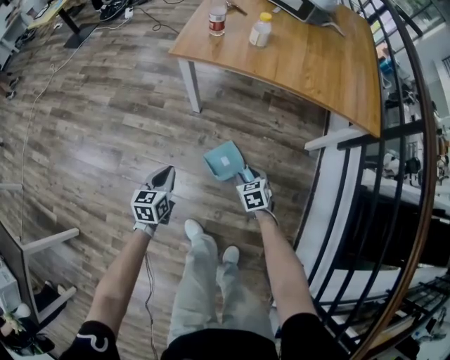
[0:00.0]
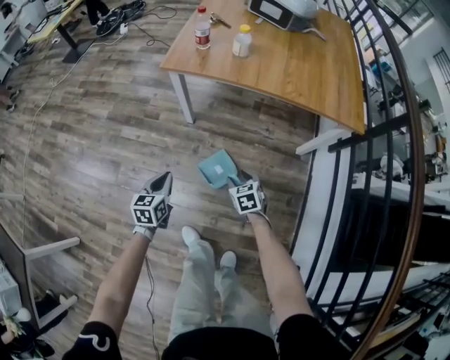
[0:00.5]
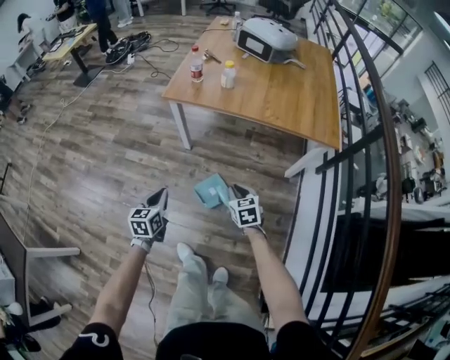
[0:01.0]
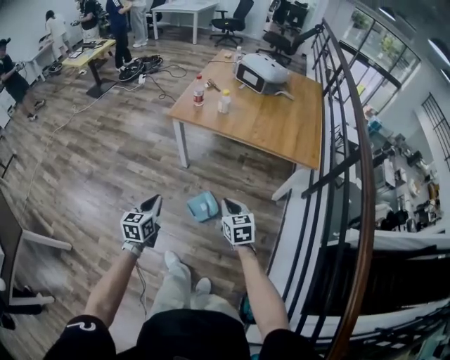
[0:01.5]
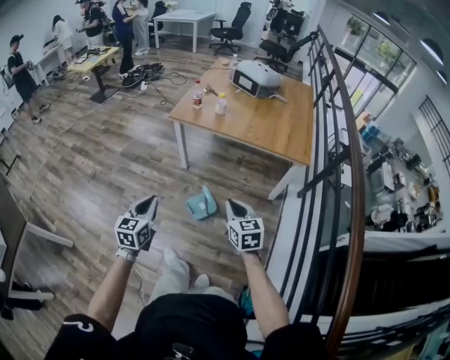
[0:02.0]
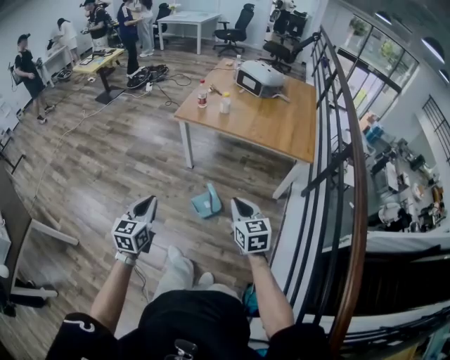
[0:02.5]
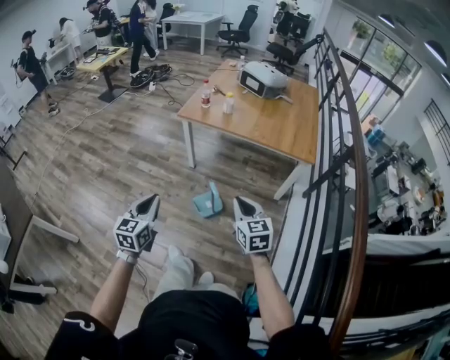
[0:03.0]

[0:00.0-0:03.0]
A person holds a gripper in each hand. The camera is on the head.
0:00.0 to 0:01.5: Both grippers move upward and backward, roughly 35 cm. The right gripper changes its angle by approximately 20 degrees, and closes its fingers.
0:01.5 to 0:03.0: The two grippers go roughly 20 cm backward and upward.

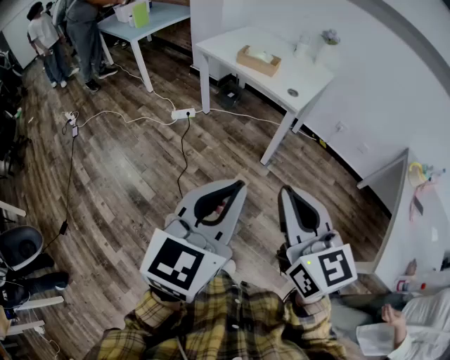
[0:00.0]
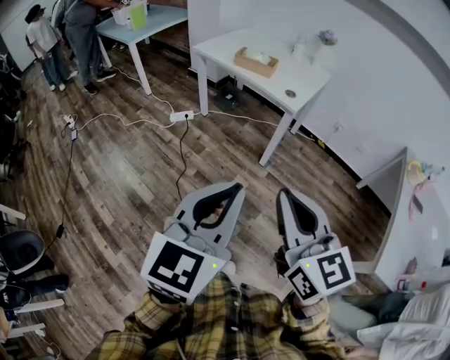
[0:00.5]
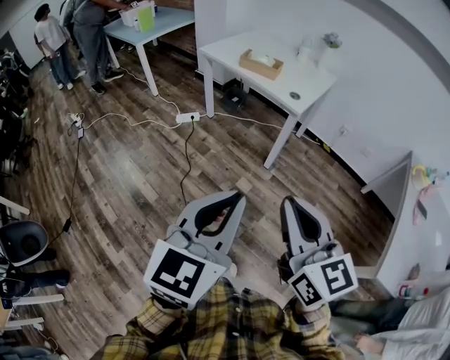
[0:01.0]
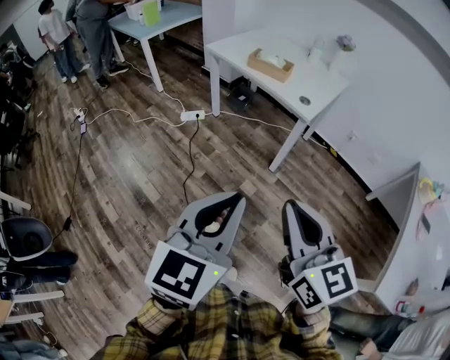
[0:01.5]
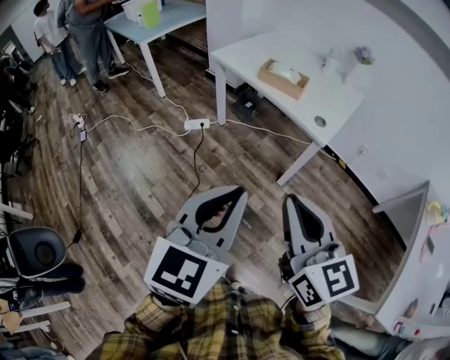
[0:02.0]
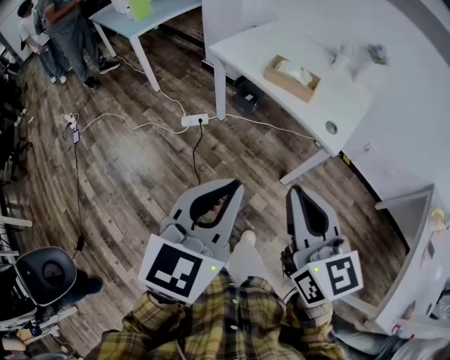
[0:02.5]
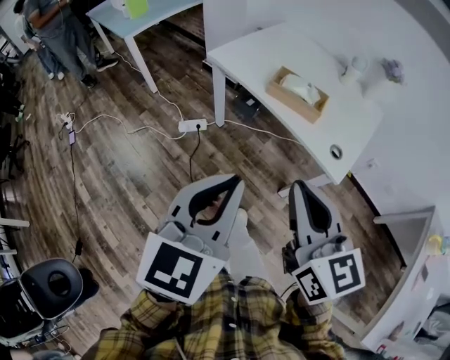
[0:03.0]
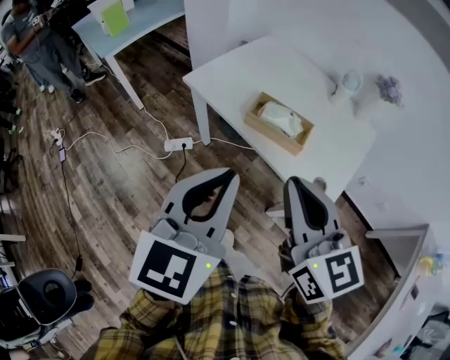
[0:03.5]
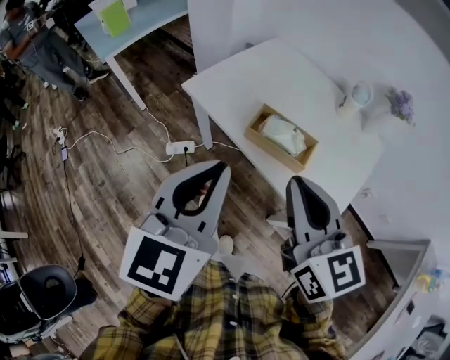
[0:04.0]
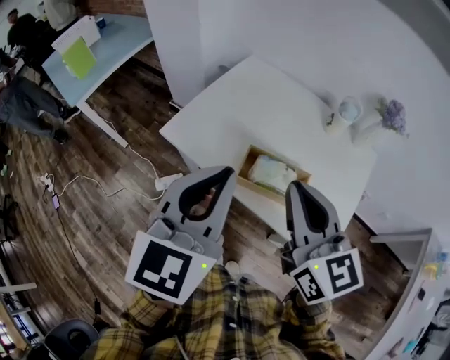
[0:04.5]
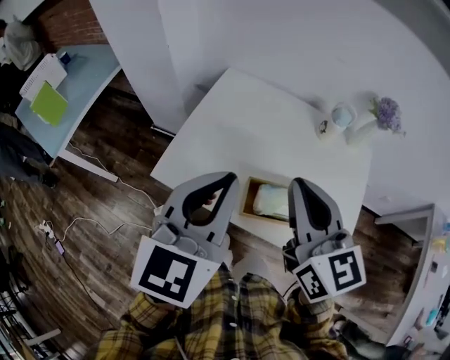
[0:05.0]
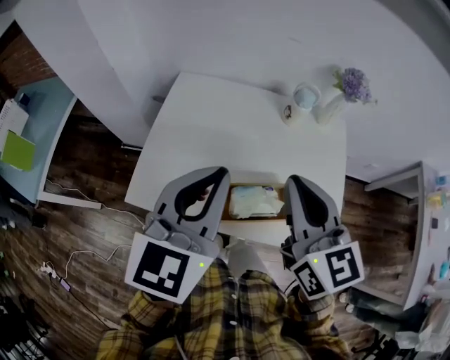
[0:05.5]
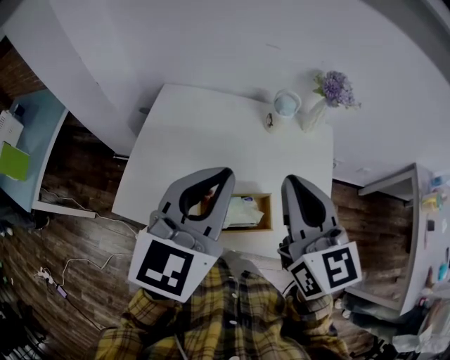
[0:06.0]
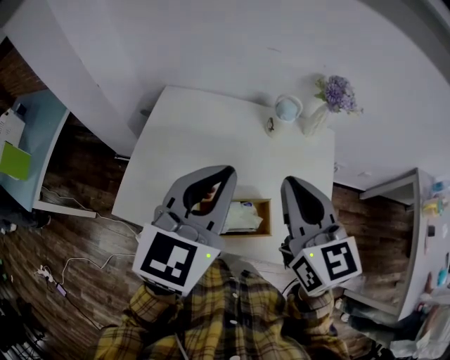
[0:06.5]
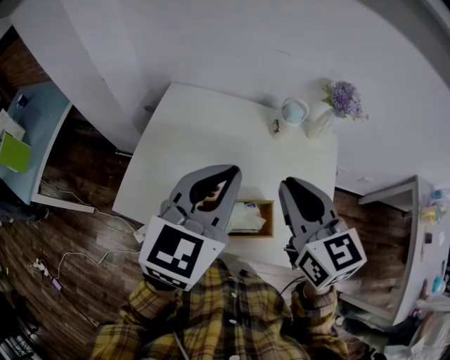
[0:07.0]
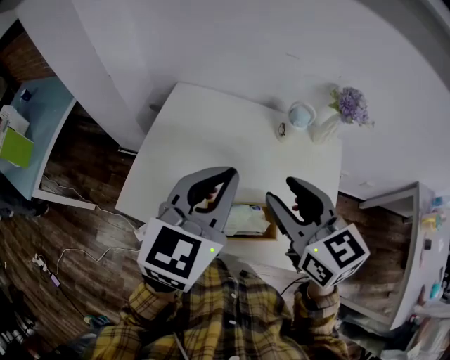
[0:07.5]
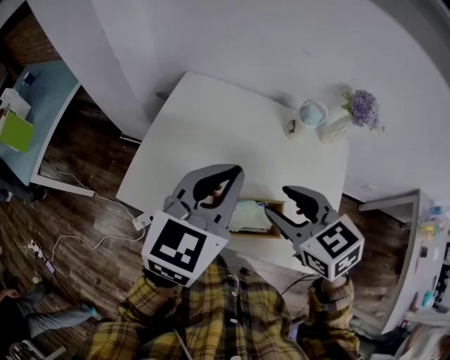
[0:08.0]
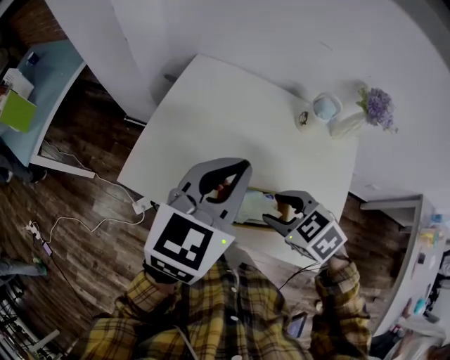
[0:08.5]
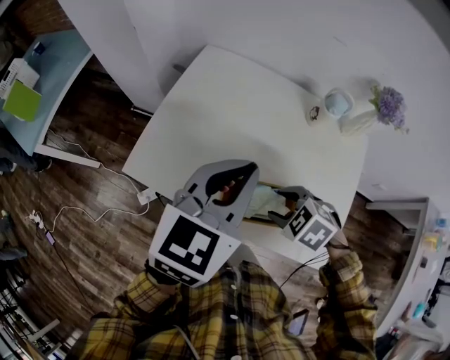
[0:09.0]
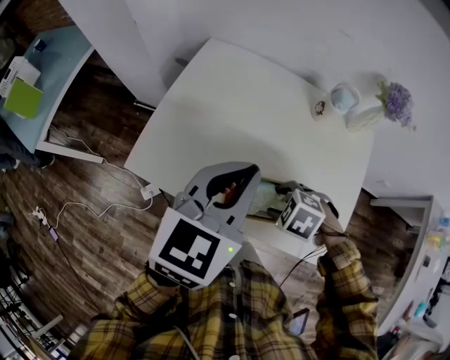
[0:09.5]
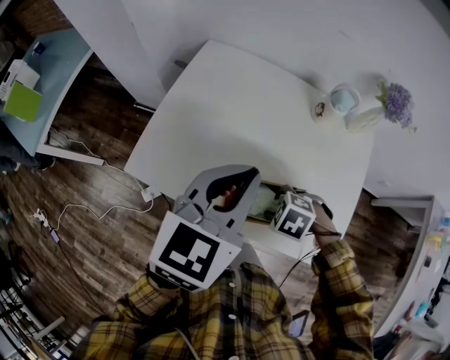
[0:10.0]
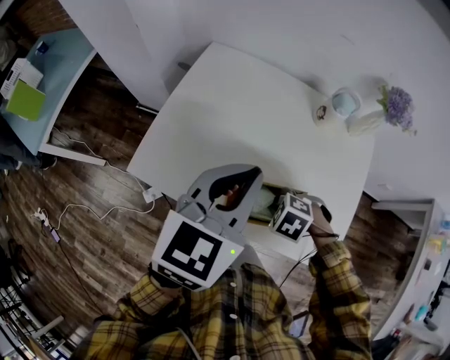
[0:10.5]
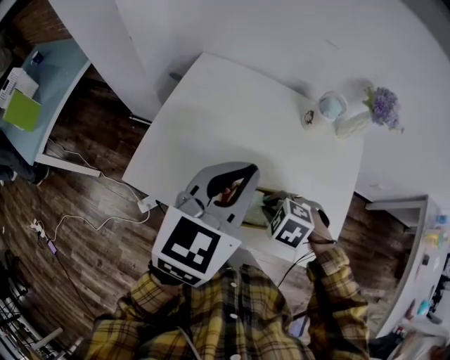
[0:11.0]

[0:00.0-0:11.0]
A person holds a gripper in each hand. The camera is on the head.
0:00.0 to 0:02.0: The grippers both shift forward by roughly 15 cm.
0:02.0 to 0:03.5: The grippers both shift forward by approximately 35 cm.
0:03.5 to 0:05.5: The left gripper shifts by some 30 cm, and turns by some 30 degrees. The right gripper shifts by about 25 cm, and changes its angle by some 30 degrees.
0:05.5 to 0:07.5: The right gripper moves some 5 cm, changes its angle by about 20 degrees, and opens up; the left gripper heads forward, covering about 5 cm.
0:07.5 to 0:09.0: The left gripper shifts by about 5 cm. The right gripper is displaced downward by roughly 20 cm, and points its fingers approximately 50 degrees further downward.
0:09.0 to 0:11.0: The right gripper closes.

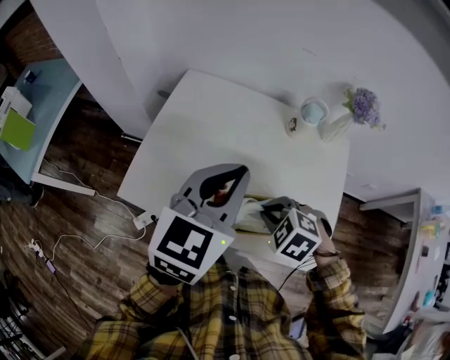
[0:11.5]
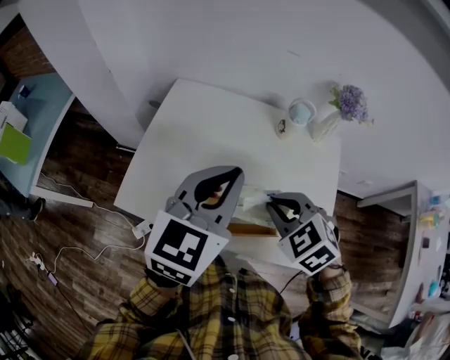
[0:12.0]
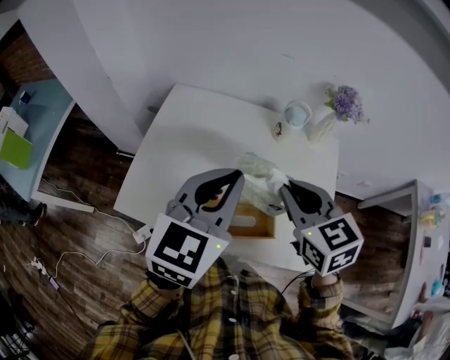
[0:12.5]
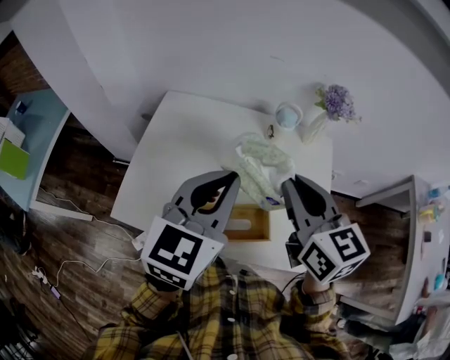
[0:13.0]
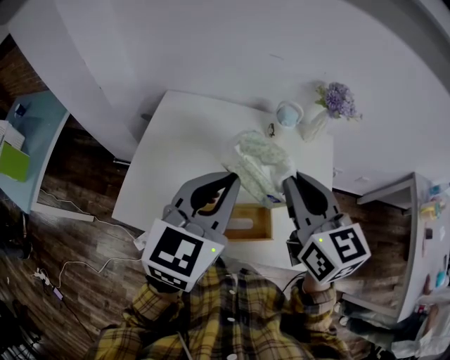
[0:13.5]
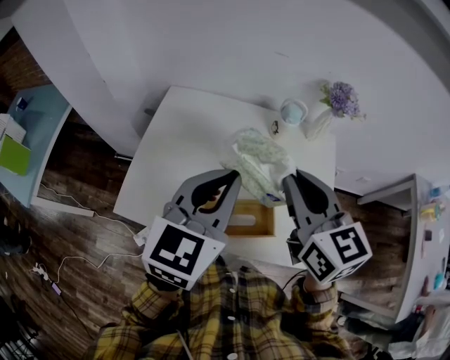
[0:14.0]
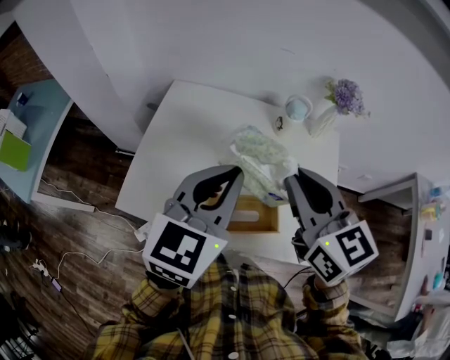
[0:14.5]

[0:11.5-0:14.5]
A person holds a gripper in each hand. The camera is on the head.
0:11.5 to 0:13.0: The right gripper heads upward, covering some 20 cm, and points its fingers some 50 degrees further upward.
0:13.0 to 0:14.5: The grippers move only a little.

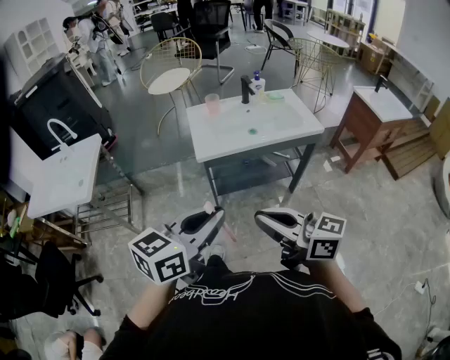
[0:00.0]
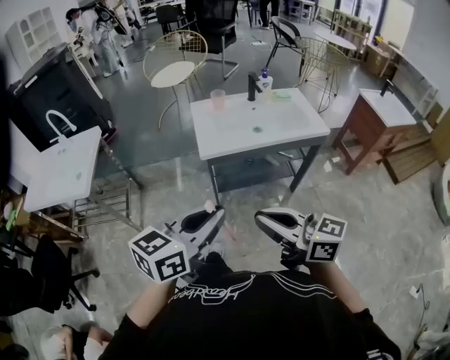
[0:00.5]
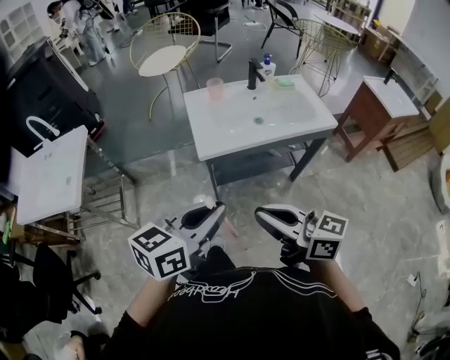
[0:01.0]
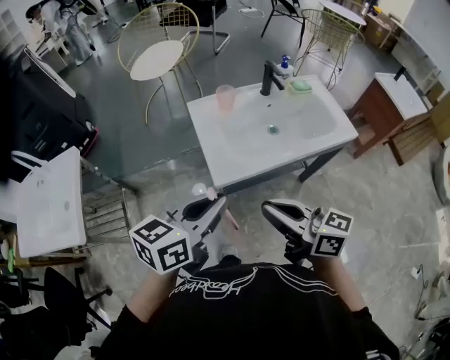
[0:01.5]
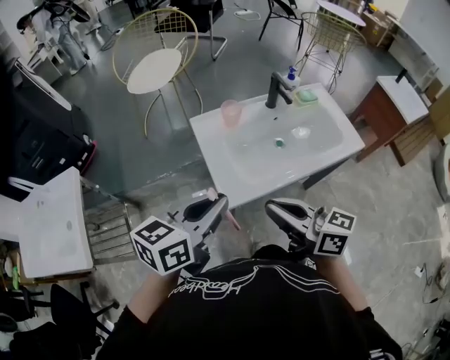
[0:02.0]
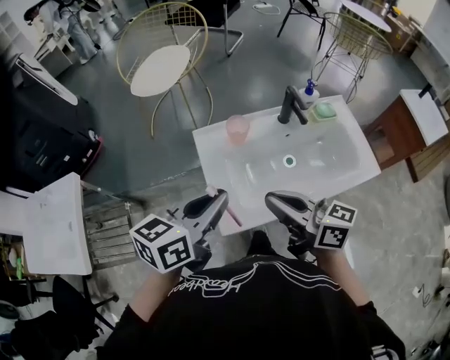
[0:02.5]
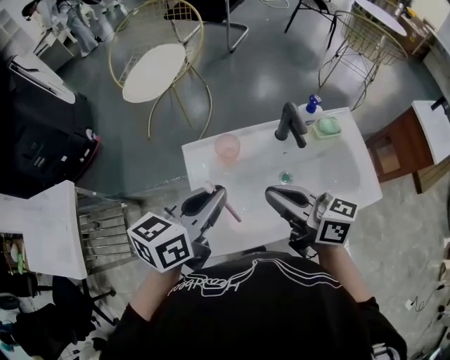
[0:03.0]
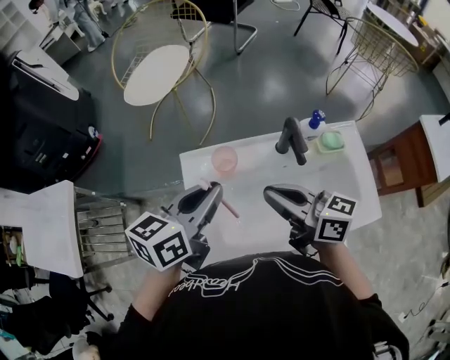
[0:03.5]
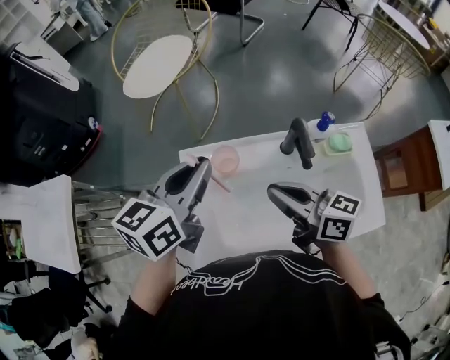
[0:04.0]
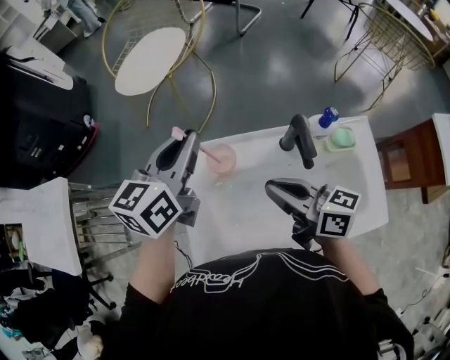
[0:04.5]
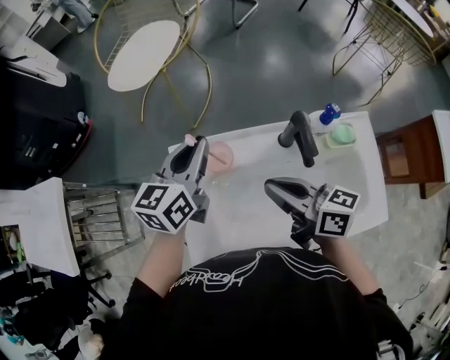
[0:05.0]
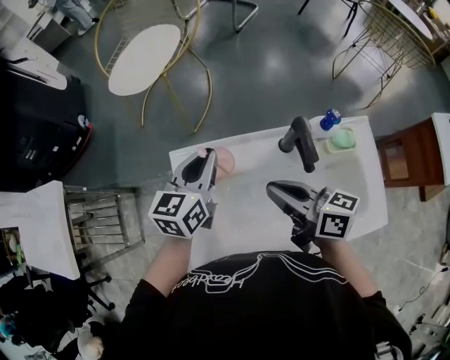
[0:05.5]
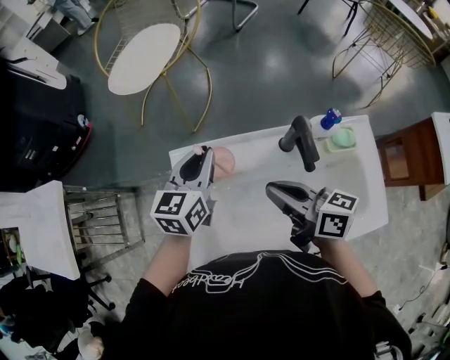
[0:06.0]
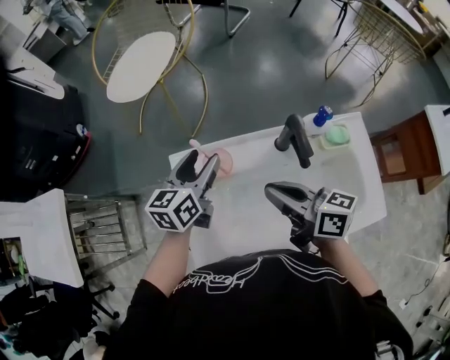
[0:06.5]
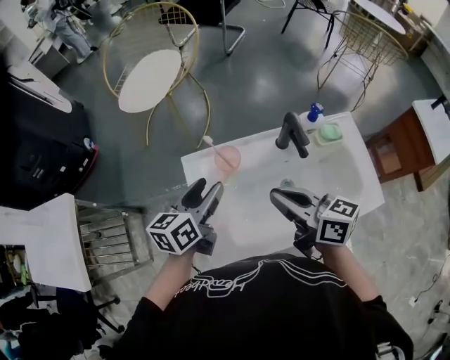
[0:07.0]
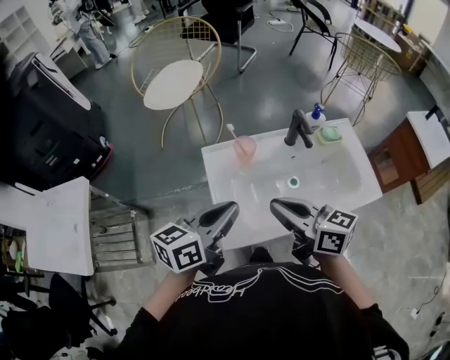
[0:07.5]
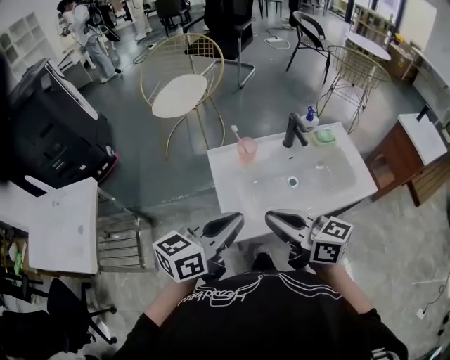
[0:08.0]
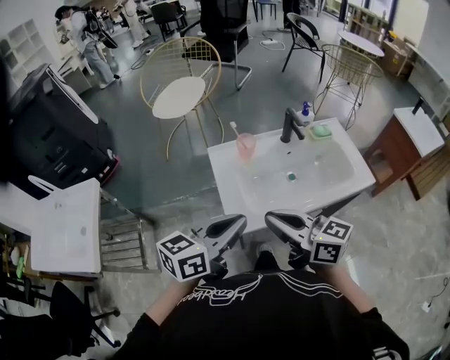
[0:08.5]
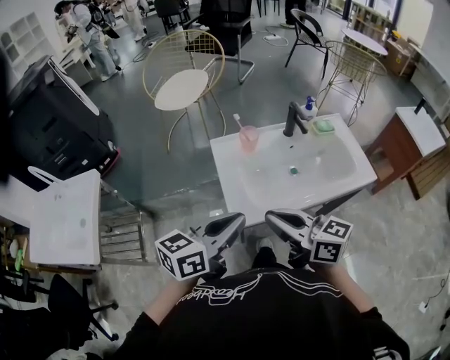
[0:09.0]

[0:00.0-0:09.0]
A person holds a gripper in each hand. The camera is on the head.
0:00.0 to 0:02.0: Both grippers travel together forward, approximately 35 cm.
0:02.0 to 0:04.5: The right gripper shifts about 30 cm forward and to the right, while the left gripper heads forward, covering approximately 35 cm, and turns by some 30 degrees.
0:04.5 to 0:07.0: The right gripper shifts by some 5 cm. The left gripper heads downward and backward, covering about 15 cm, and opens.
0:07.0 to 0:09.0: The left gripper heads backward, covering about 25 cm, swivels roughly 20 degrees, and closes its fingers. Meanwhile the right gripper goes roughly 25 cm backward and to the left.
